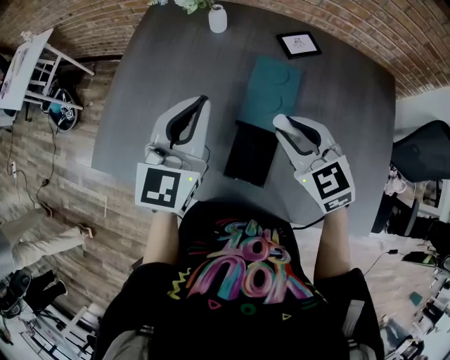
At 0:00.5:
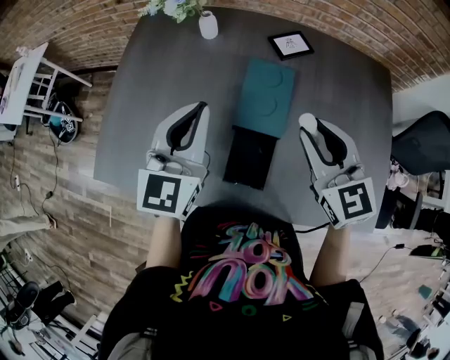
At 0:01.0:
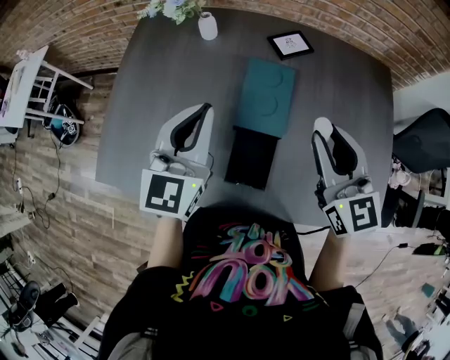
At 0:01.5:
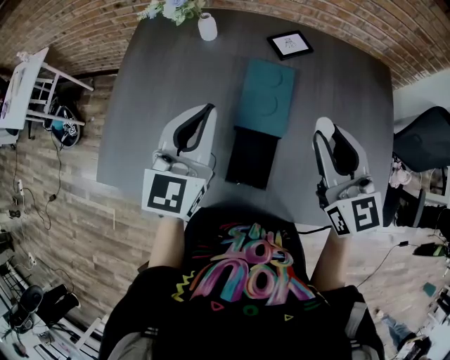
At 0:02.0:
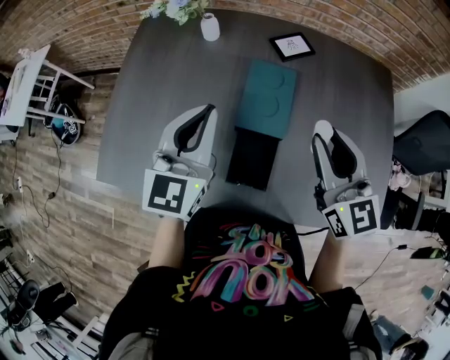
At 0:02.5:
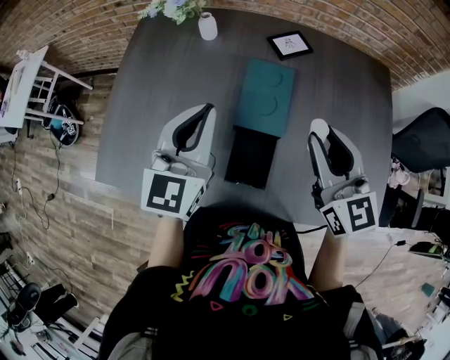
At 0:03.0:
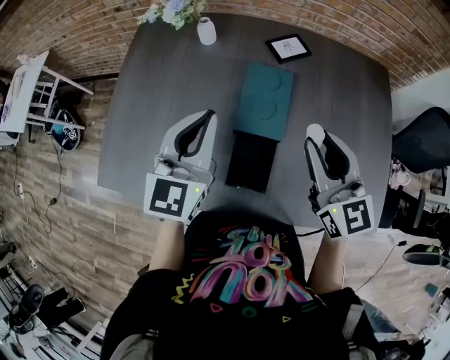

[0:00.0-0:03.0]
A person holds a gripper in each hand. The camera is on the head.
0:00.0 to 0:01.5: The right gripper moves upward and to the right, approximately 10 cm, and turns by some 30 degrees.
0:01.5 to 0:03.0: The grippers stay close to where they were, moving slightly.

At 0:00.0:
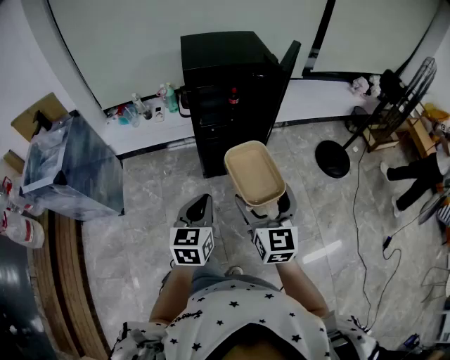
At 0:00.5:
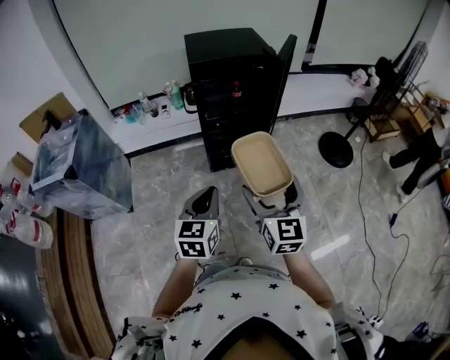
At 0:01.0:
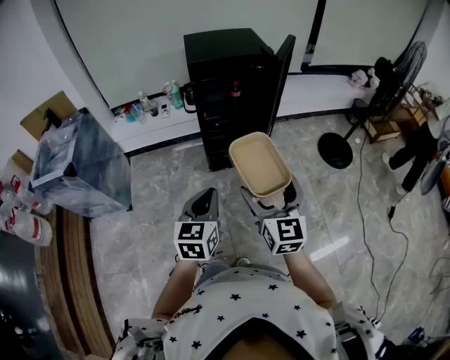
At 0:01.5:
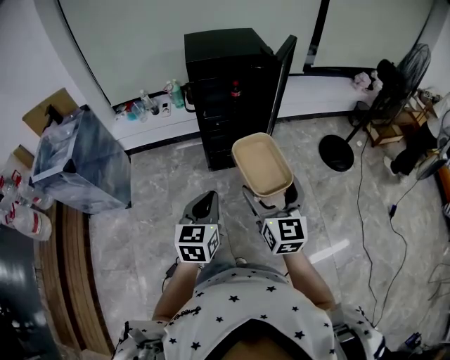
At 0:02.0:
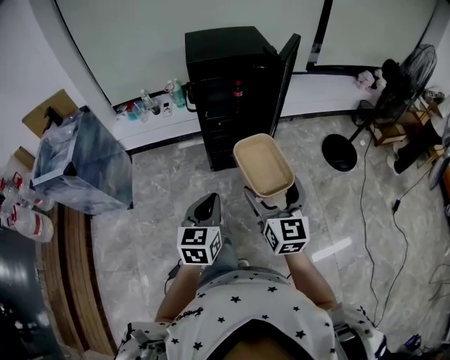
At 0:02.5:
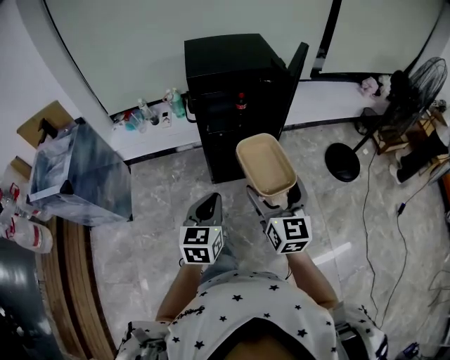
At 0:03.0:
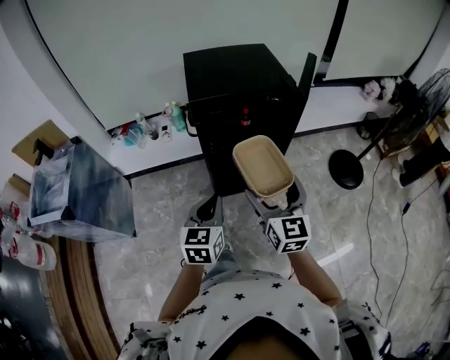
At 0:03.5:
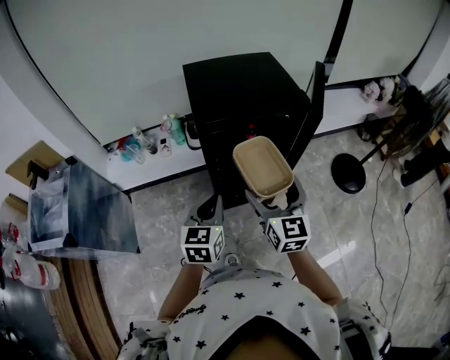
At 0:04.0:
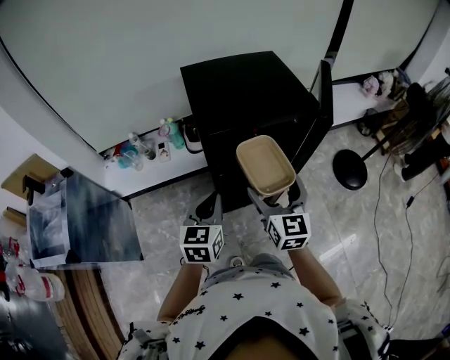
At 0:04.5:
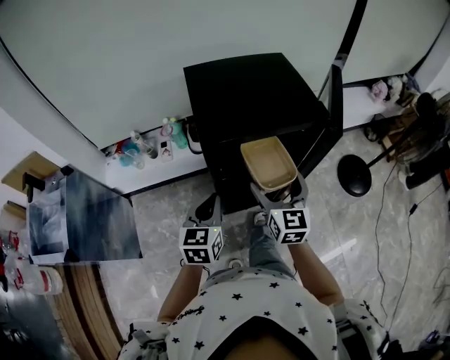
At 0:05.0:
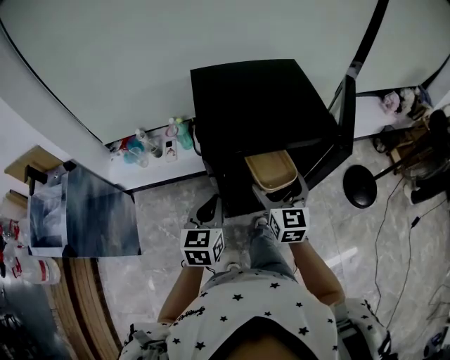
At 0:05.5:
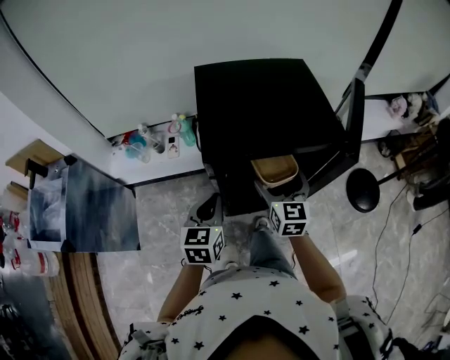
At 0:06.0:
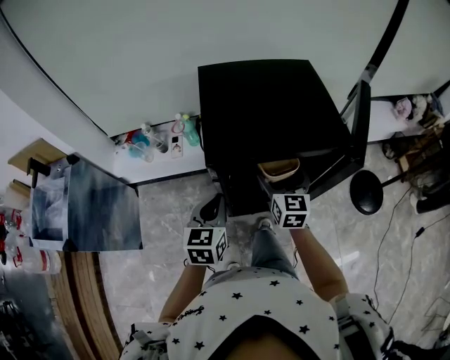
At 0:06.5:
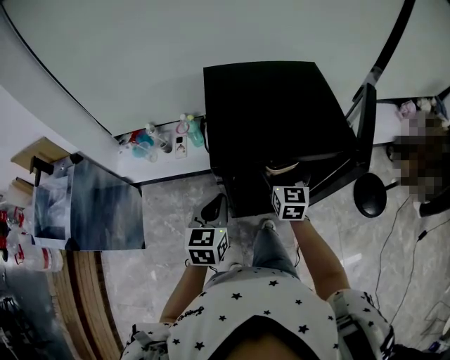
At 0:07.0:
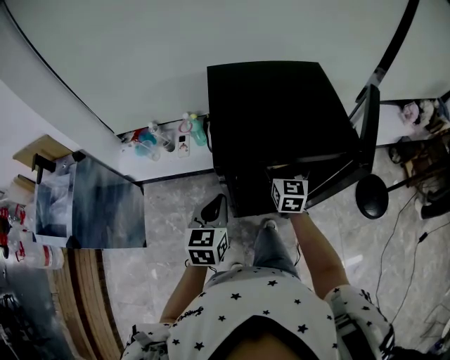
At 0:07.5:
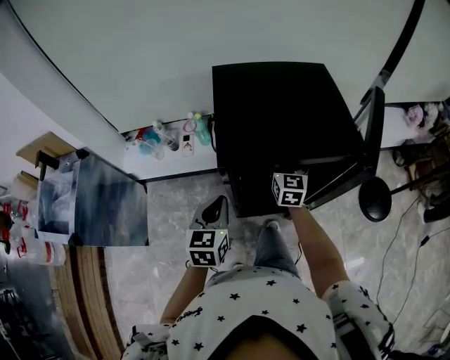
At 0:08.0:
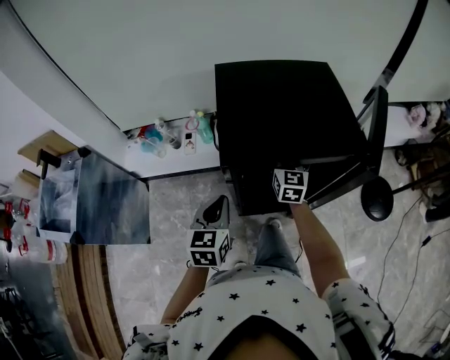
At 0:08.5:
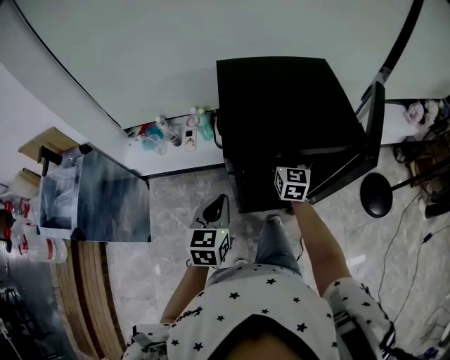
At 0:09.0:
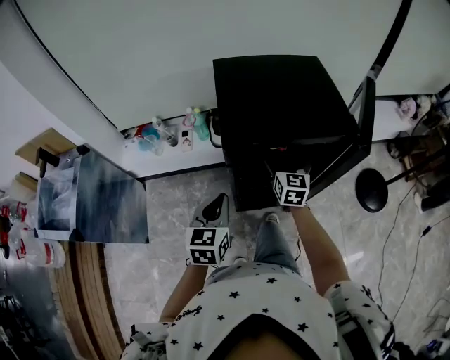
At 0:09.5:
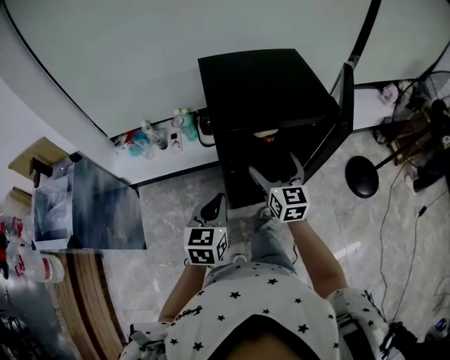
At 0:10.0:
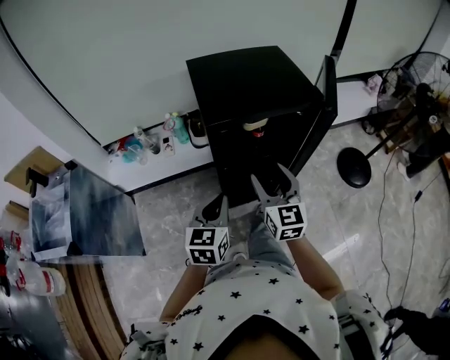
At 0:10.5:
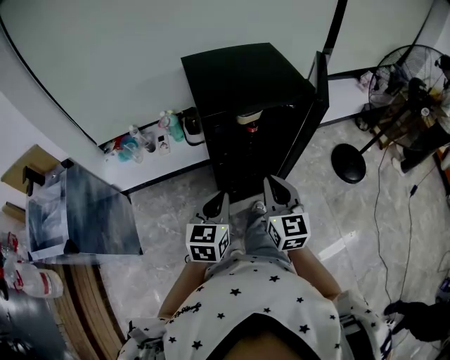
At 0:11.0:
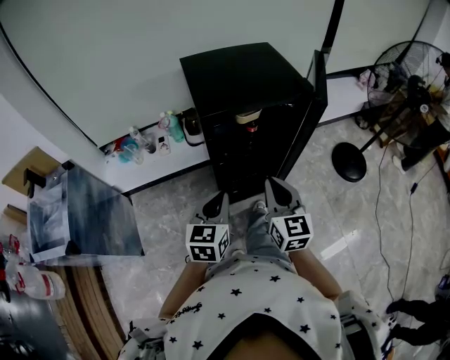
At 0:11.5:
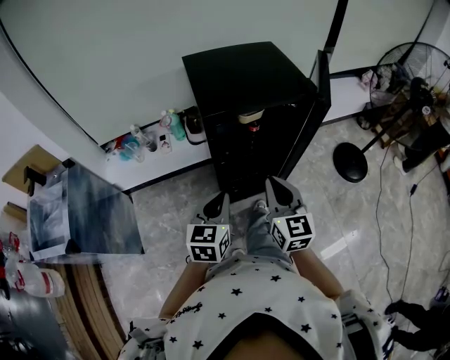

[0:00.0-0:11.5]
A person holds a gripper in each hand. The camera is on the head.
0:00.0 to 0:02.0: The left gripper shifts some 5 cm backward.
0:02.0 to 0:04.0: The two grippers go about 35 cm forward.
0:04.0 to 0:06.0: The right gripper heads forward and downward, covering about 20 cm, while the left gripper shifts approximately 10 cm forward.
0:06.0 to 0:07.5: The right gripper is displaced forward by about 10 cm.
0:07.5 to 0:09.5: The right gripper is displaced backward by about 15 cm. Meanwhile the left gripper goes approximately 10 cm backward.
0:09.5 to 0:11.5: The left gripper moves backward, approximately 5 cm, while the right gripper moves backward, some 15 cm, and closes its fingers.

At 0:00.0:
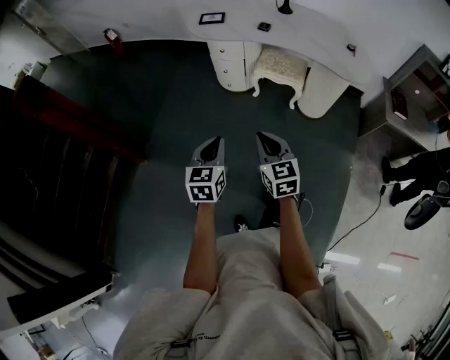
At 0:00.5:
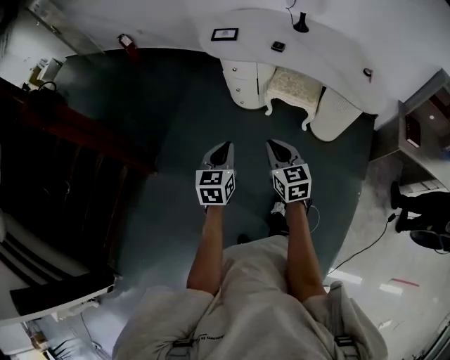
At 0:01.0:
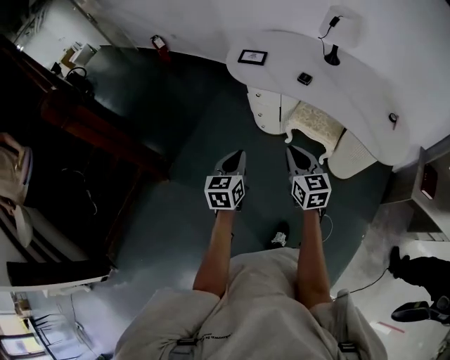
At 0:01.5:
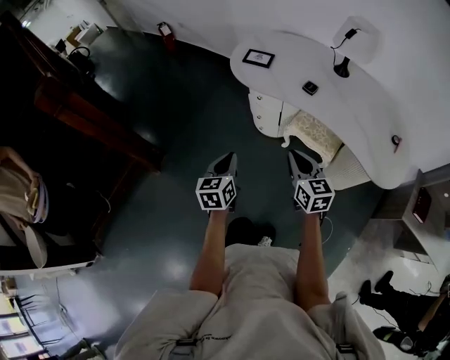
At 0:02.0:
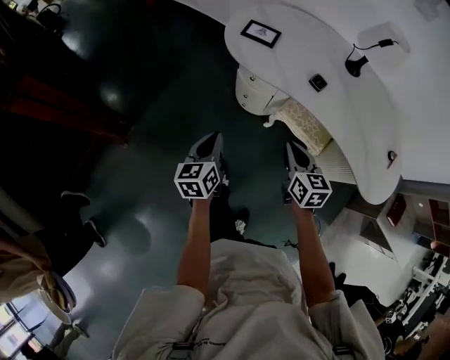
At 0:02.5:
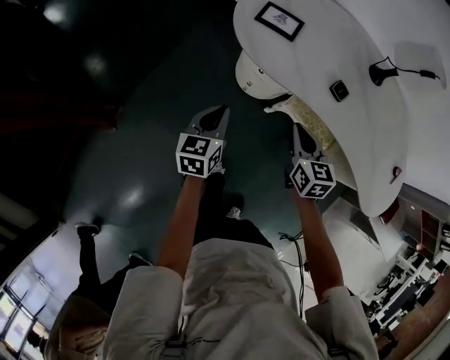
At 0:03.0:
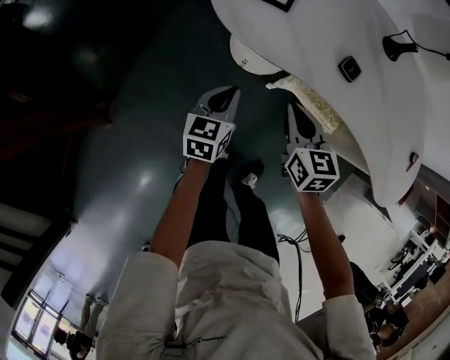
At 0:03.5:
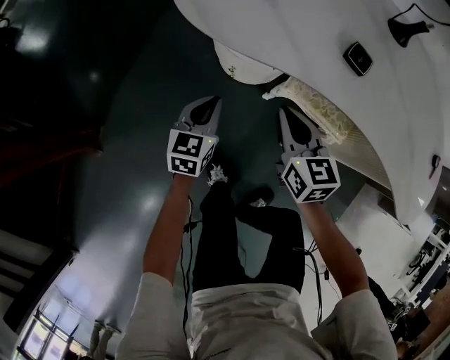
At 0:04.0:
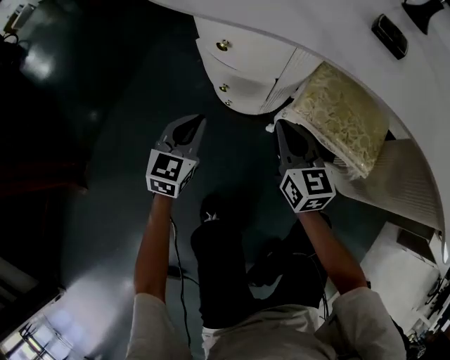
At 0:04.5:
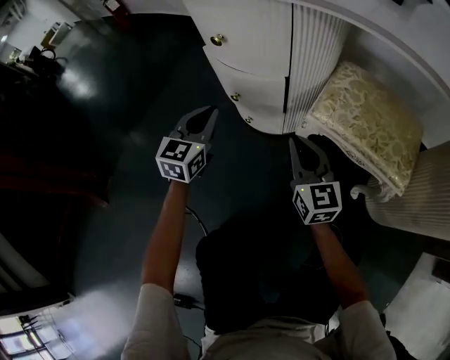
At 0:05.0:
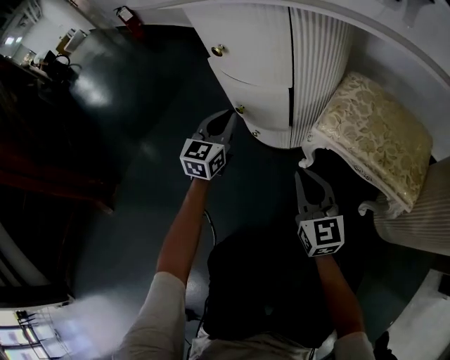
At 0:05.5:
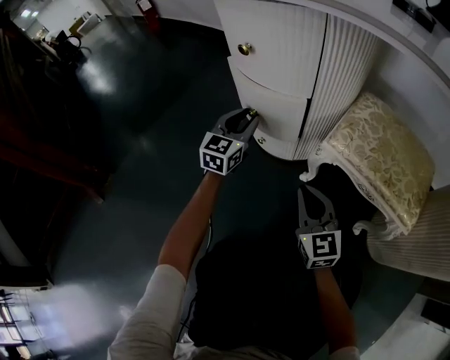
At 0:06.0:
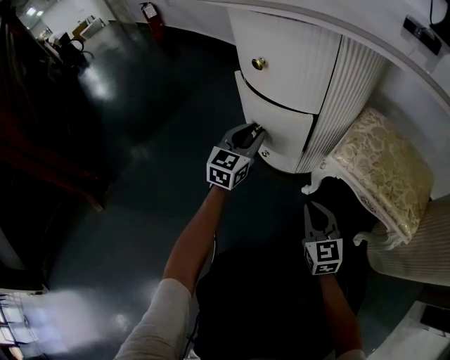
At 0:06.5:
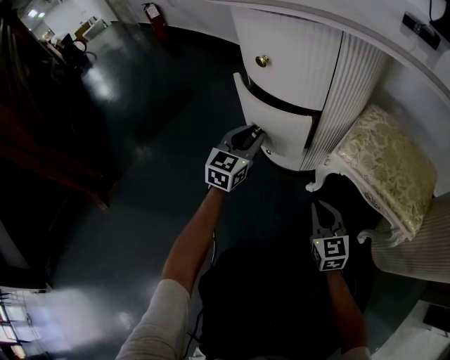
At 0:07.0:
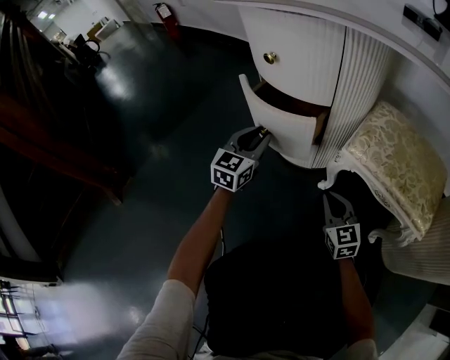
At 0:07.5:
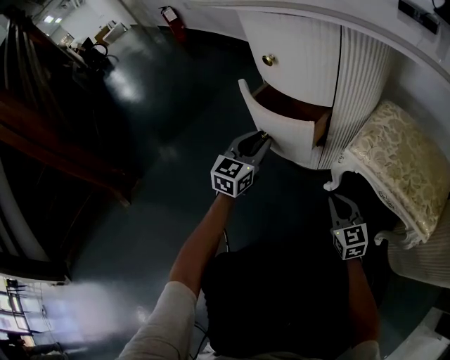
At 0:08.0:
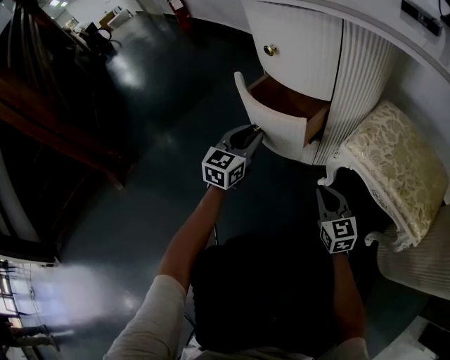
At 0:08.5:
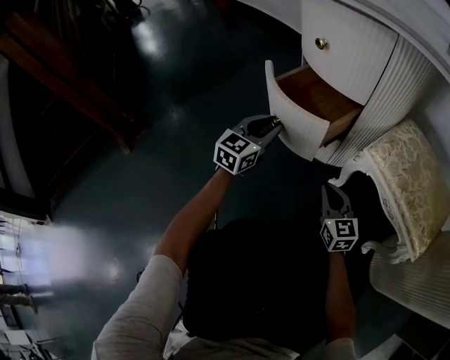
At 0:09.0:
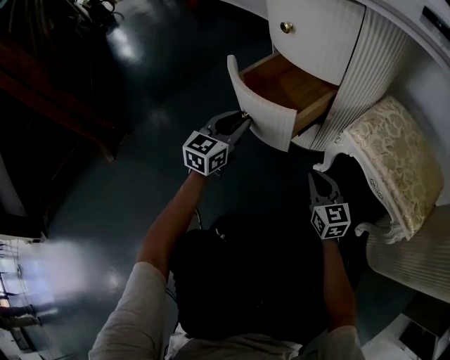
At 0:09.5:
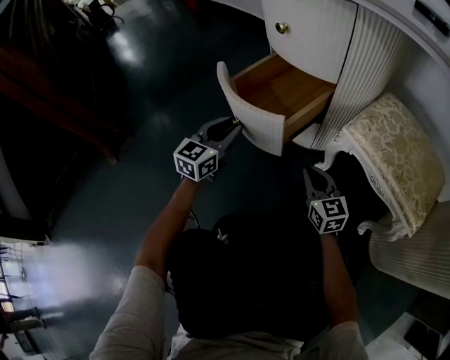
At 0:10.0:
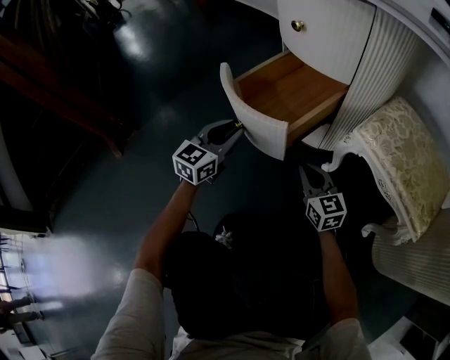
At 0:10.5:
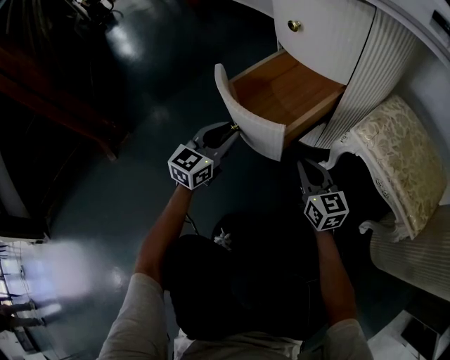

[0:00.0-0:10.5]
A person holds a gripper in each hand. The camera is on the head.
0:00.0 to 0:02.0: The grippers both shift forward by roughly 40 cm. The left gripper swivels about 30 degrees.
0:02.0 to 0:04.0: The two grippers go some 50 cm downward and forward. The left gripper changes its angle by about 40 degrees.
0:04.0 to 0:06.5: The left gripper moves downward and forward, roughly 15 cm, and opens its fingers; the right gripper moves downward, roughly 25 cm.
0:06.5 to 0:08.5: The left gripper heads backward and to the left, covering roughly 10 cm.
0:08.5 to 0:10.5: The right gripper moves approximately 5 cm. The left gripper is displaced backward and to the left by about 10 cm.

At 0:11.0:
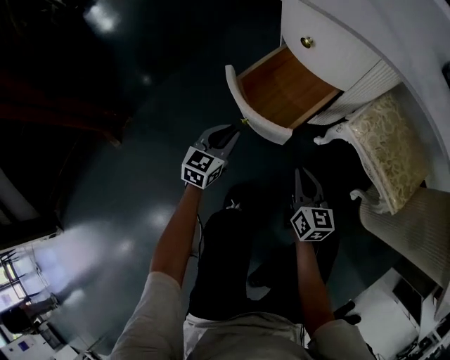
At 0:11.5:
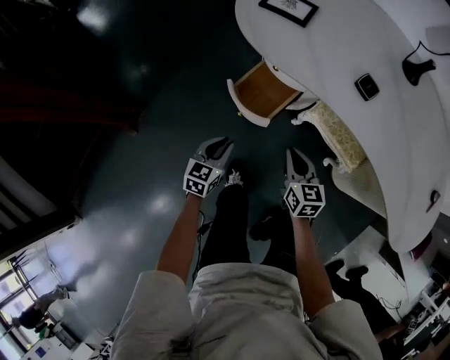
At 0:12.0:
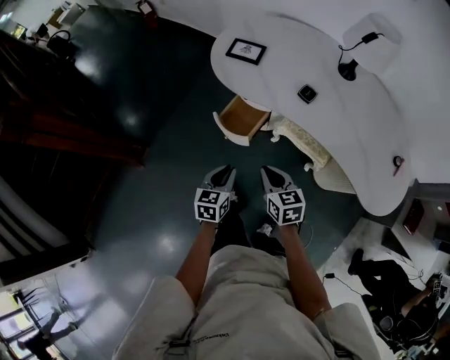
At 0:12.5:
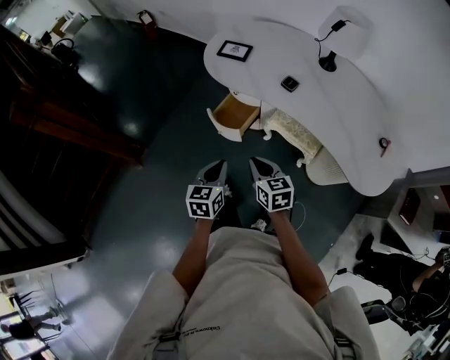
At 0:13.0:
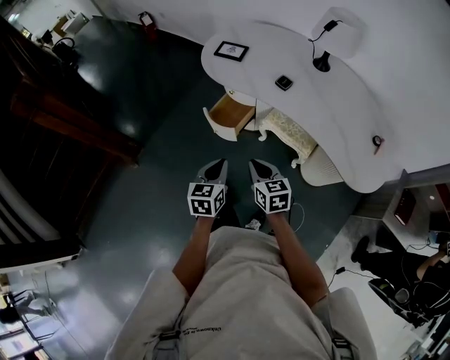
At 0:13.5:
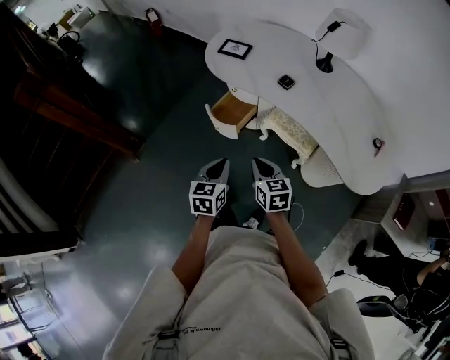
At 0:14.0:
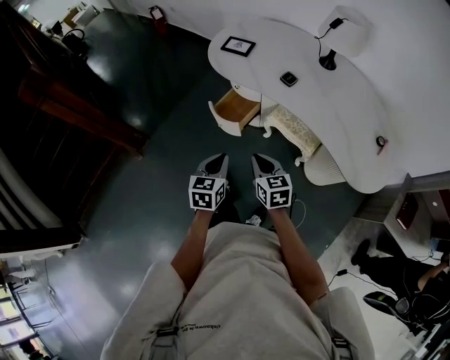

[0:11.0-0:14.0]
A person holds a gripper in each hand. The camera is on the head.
0:11.0 to 0:12.5: The left gripper travels upward and backward by some 60 cm; the right gripper is displaced upward by approximately 50 cm.
0:12.5 to 0:14.0: The right gripper shifts by roughly 5 cm.
